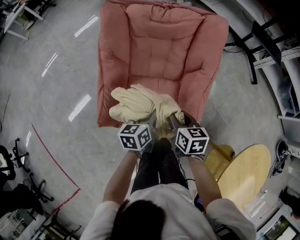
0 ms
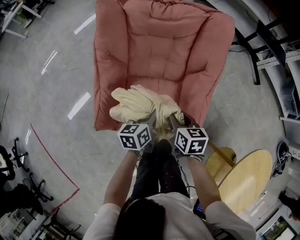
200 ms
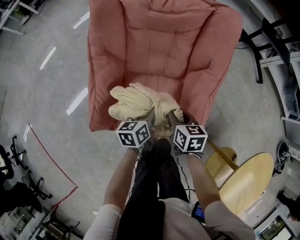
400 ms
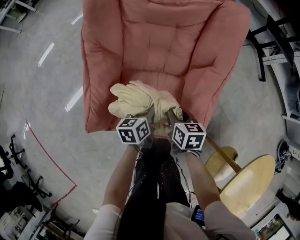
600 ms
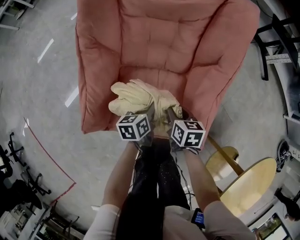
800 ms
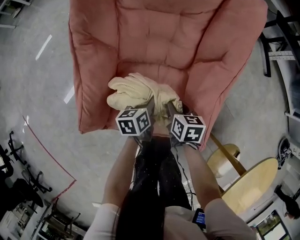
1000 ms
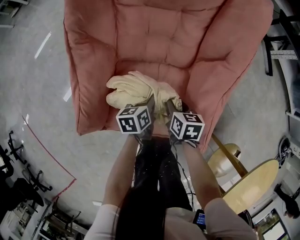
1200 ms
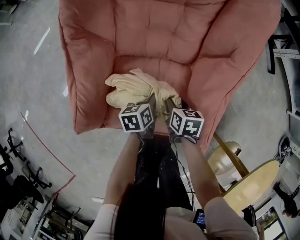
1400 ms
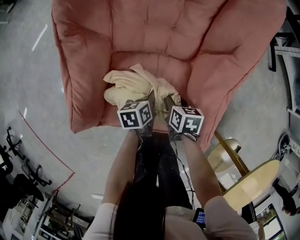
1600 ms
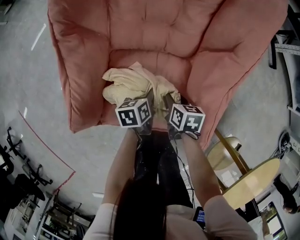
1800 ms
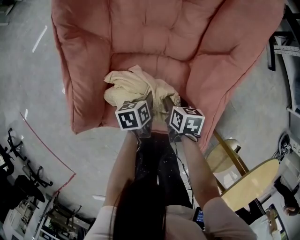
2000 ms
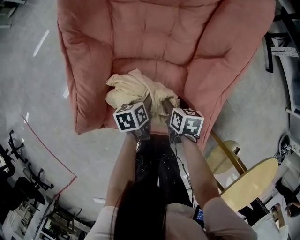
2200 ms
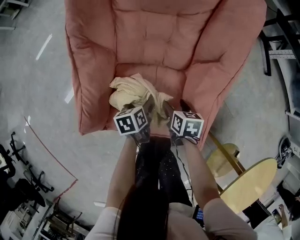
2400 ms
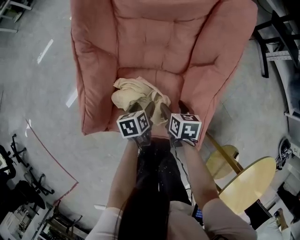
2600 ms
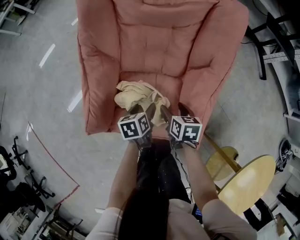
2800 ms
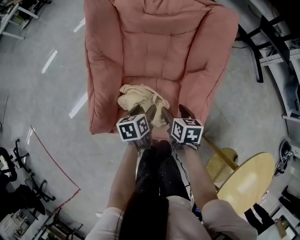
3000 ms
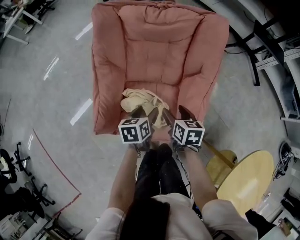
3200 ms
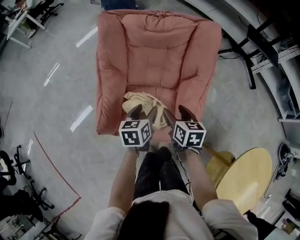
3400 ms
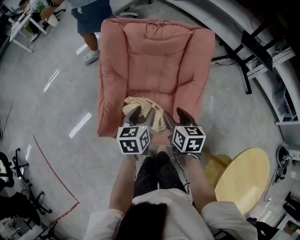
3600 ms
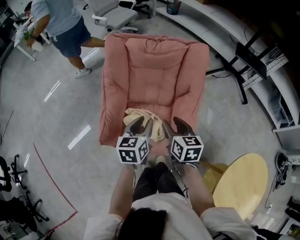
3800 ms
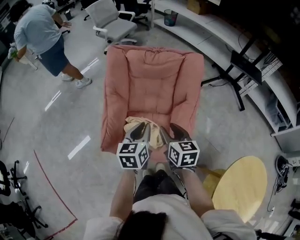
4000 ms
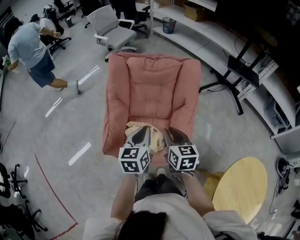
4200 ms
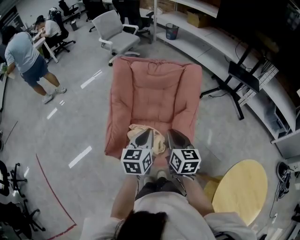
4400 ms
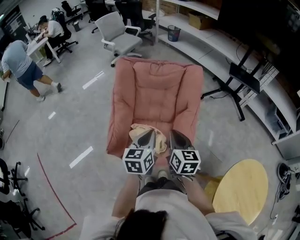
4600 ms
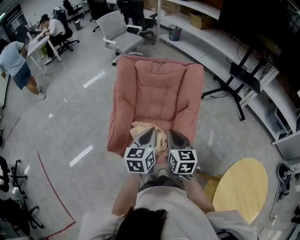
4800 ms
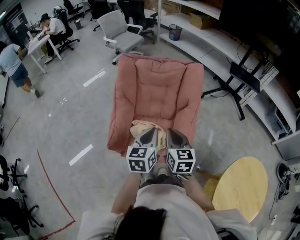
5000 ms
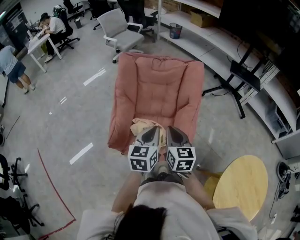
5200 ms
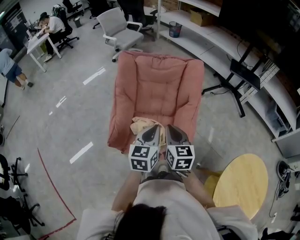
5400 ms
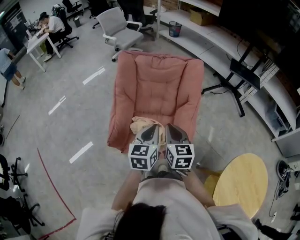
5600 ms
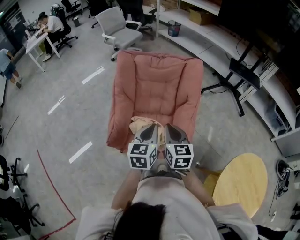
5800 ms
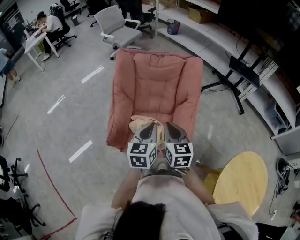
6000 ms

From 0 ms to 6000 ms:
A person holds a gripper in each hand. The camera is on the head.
From 0 ms to 1600 ms: The two grippers go roughly 30 cm downward. The left gripper rotates roughly 20 degrees.
From 1600 ms to 3000 ms: The grippers both shift upward by about 15 cm. The right gripper opens its fingers; the left gripper opens up.
From 3000 ms to 4400 ms: The two grippers go roughly 30 cm upward. The left gripper swivels roughly 40 degrees, and closes its fingers. The right gripper rotates about 30 degrees, and closes up.
From 4400 ms to 6000 ms: The grippers move only a little.

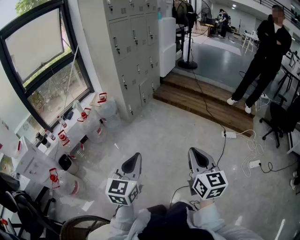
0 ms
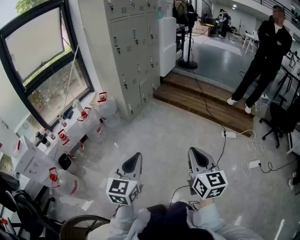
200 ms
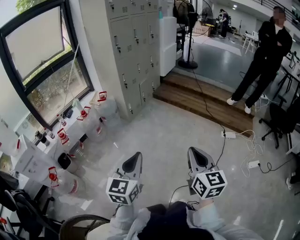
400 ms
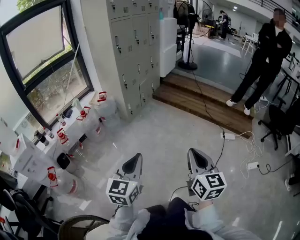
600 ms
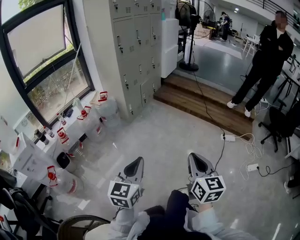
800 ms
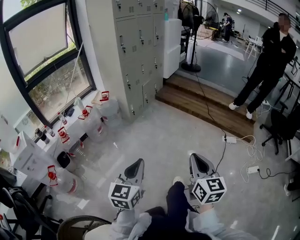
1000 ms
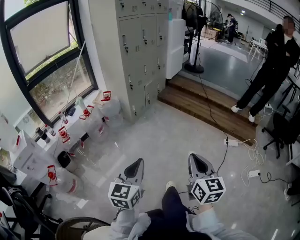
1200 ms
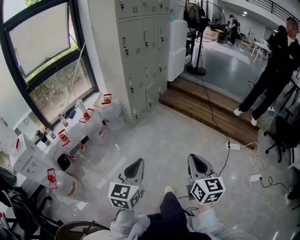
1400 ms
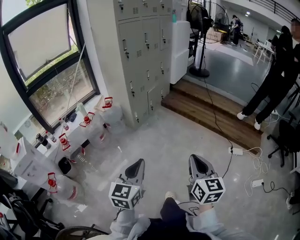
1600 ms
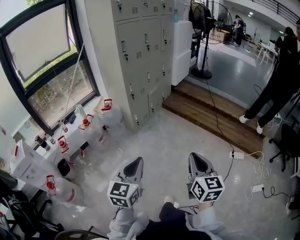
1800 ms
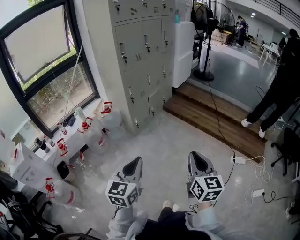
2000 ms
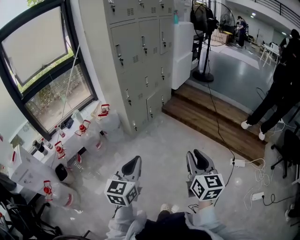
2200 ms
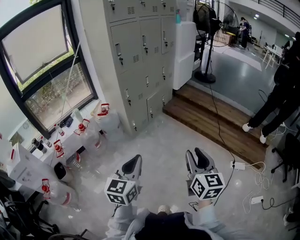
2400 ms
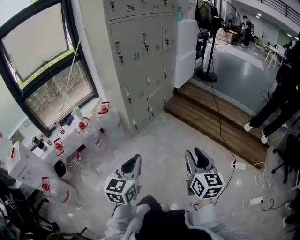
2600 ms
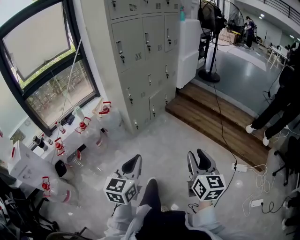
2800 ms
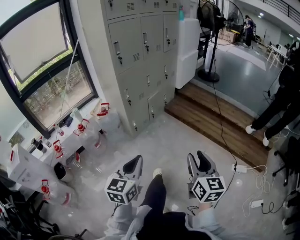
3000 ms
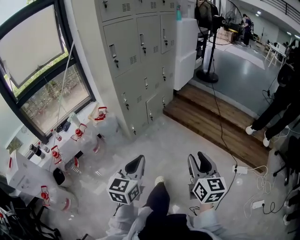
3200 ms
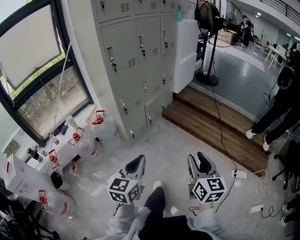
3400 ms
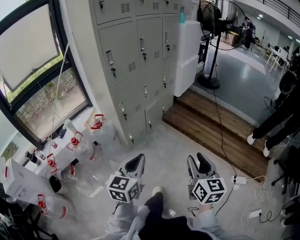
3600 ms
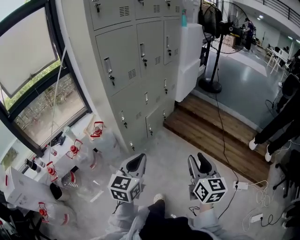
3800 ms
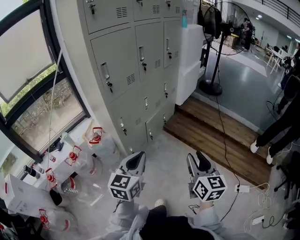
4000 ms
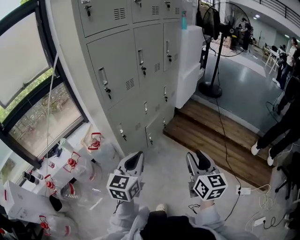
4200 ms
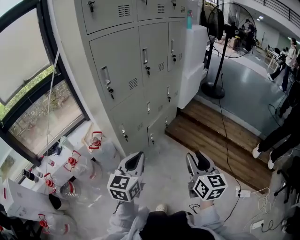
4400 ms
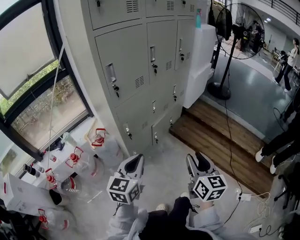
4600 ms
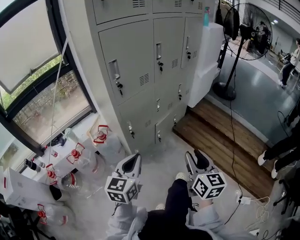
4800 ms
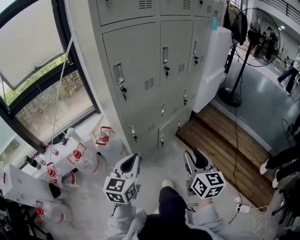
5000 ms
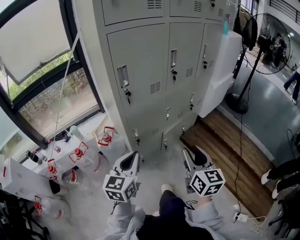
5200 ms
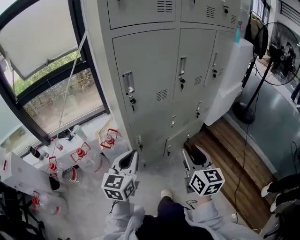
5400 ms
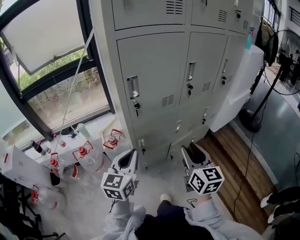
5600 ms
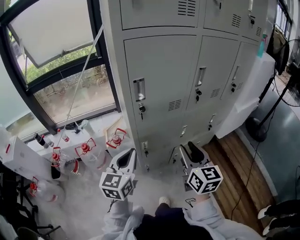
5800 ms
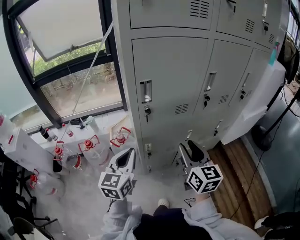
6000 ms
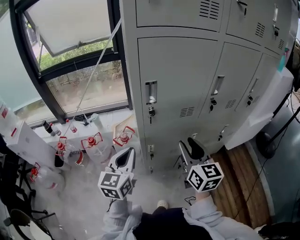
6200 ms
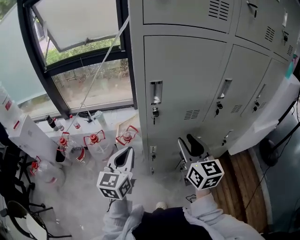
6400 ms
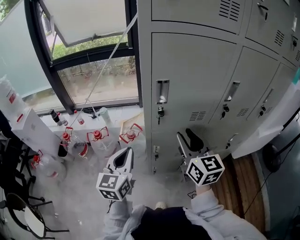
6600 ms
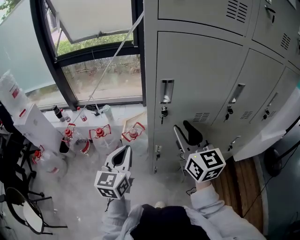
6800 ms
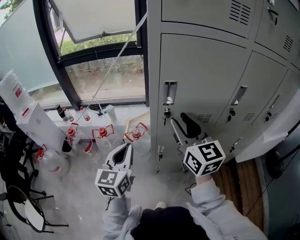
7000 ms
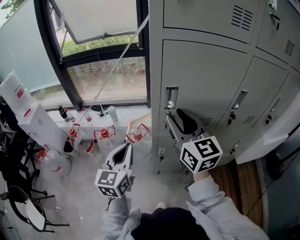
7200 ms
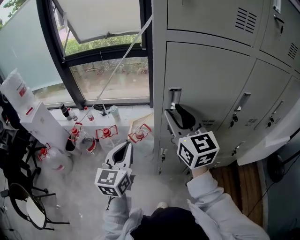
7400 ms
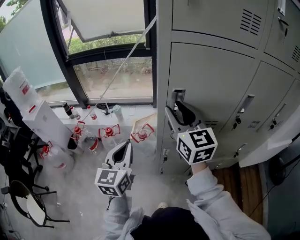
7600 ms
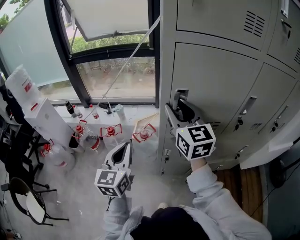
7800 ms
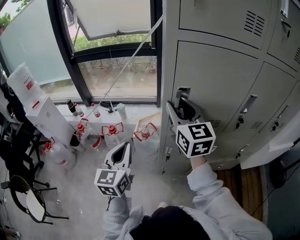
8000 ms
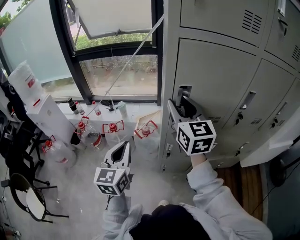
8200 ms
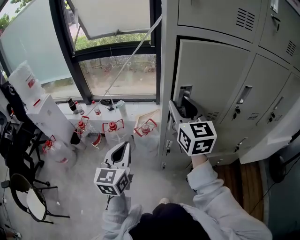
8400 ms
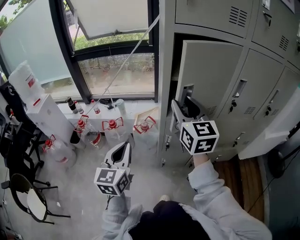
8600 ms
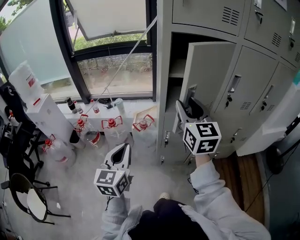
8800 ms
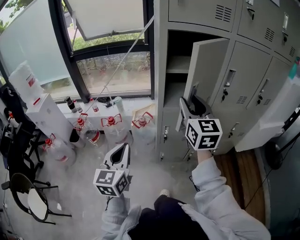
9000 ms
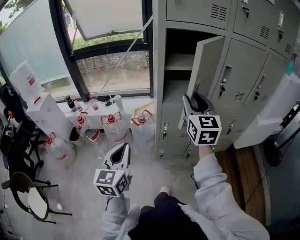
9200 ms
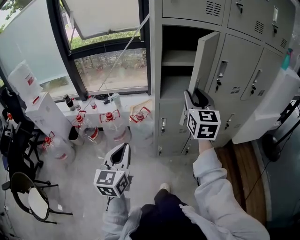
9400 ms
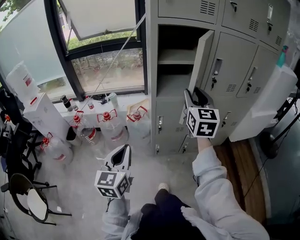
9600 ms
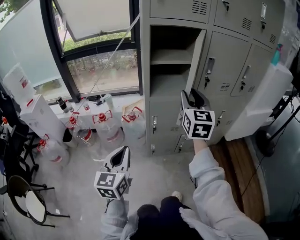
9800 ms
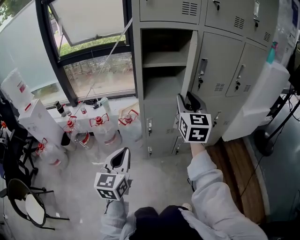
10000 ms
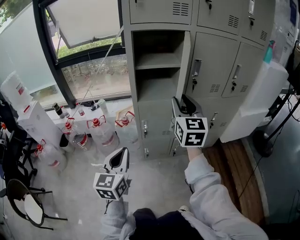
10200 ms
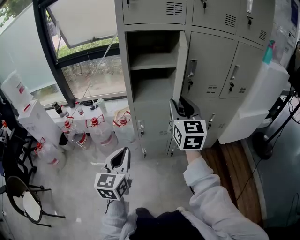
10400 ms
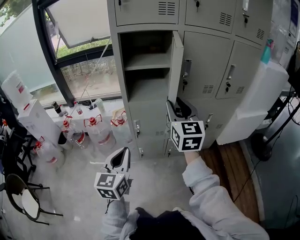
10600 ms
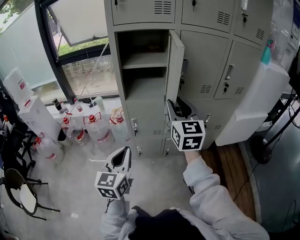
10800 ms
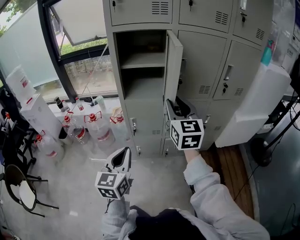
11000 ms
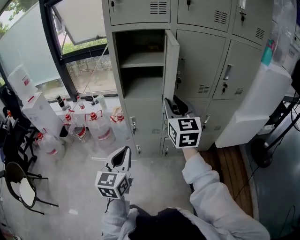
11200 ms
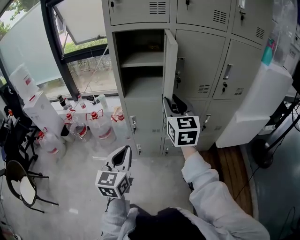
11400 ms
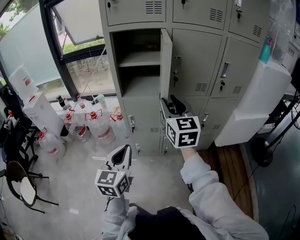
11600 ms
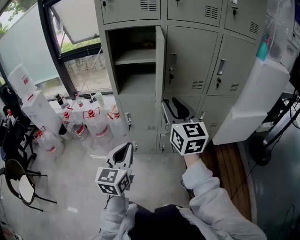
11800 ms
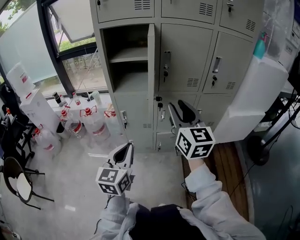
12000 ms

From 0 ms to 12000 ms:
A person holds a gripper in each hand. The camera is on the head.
From 0 ms to 1600 ms: Both grippers move forward, roughly 15 cm.
From 1600 ms to 3000 ms: Both grippers travel together forward, about 25 cm. The right gripper opens its fingers.
From 3000 ms to 4400 ms: Both grippers move forward, roughly 35 cm.
From 4400 ms to 6000 ms: The left gripper shifts by some 20 cm, and swivels roughly 40 degrees; the right gripper ends up roughly 35 cm from where it was, and rotates some 40 degrees.
From 6000 ms to 7600 ms: The right gripper travels forward, to the left and upward by about 25 cm, and swivels some 30 degrees. Meanwhile the left gripper heads to the left, covering approximately 5 cm, and swivels roughly 20 degrees.
From 7600 ms to 9000 ms: The grippers both shift backward by about 15 cm.
From 9000 ms to 10400 ms: The grippers both shift to the right and backward by approximately 15 cm.
From 10400 ms to 12000 ms: The left gripper heads to the right, covering roughly 20 cm, while the right gripper travels to the right and backward by approximately 15 cm.

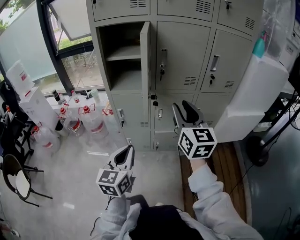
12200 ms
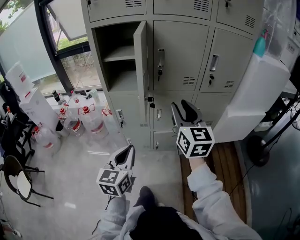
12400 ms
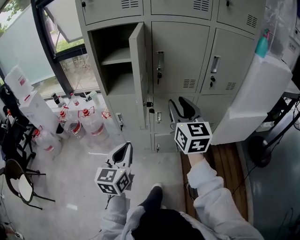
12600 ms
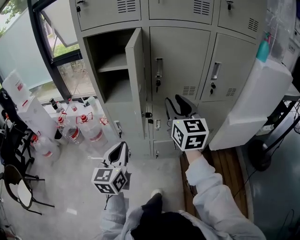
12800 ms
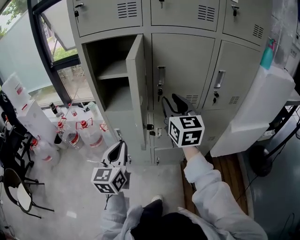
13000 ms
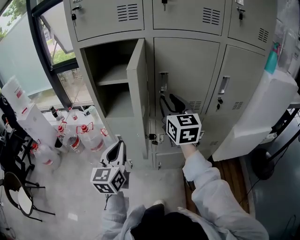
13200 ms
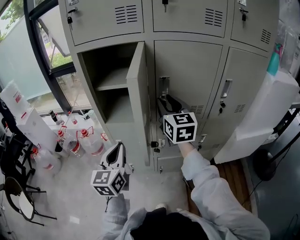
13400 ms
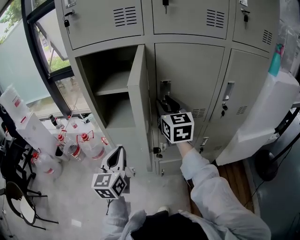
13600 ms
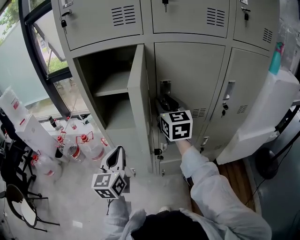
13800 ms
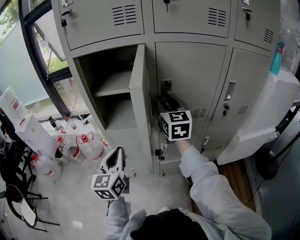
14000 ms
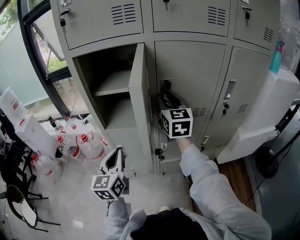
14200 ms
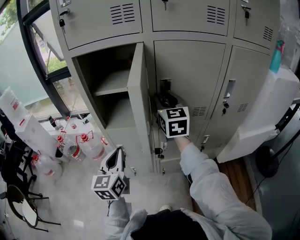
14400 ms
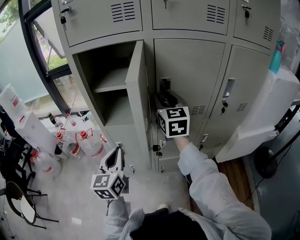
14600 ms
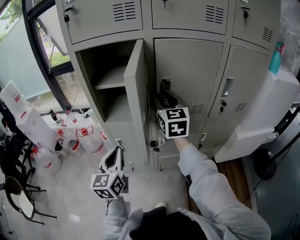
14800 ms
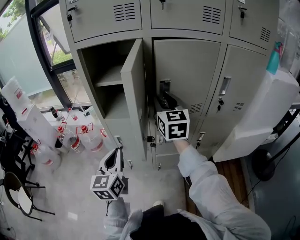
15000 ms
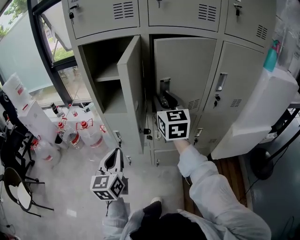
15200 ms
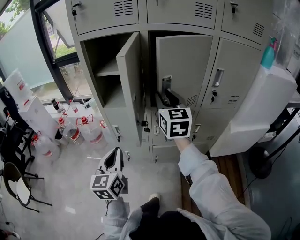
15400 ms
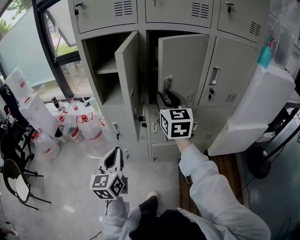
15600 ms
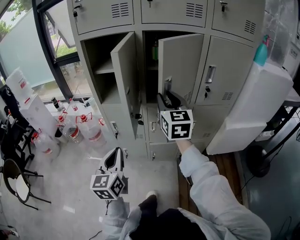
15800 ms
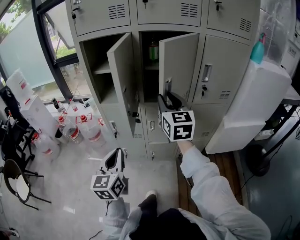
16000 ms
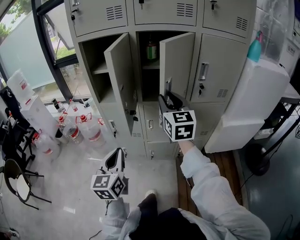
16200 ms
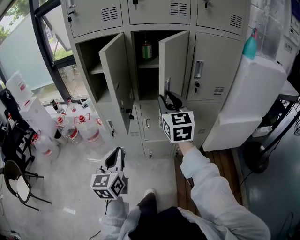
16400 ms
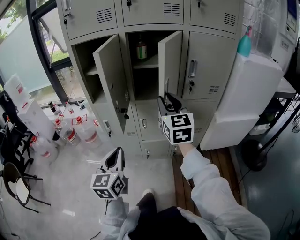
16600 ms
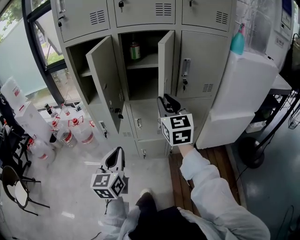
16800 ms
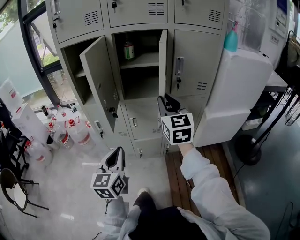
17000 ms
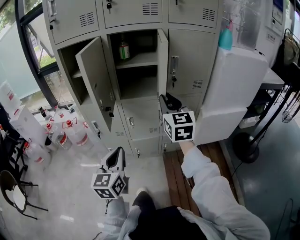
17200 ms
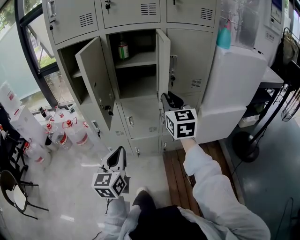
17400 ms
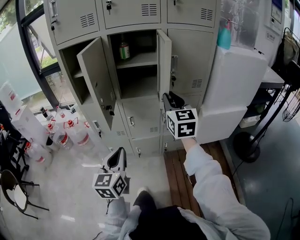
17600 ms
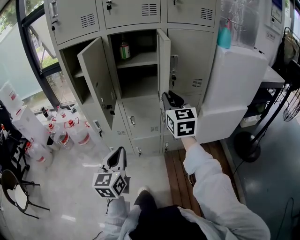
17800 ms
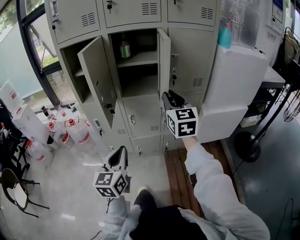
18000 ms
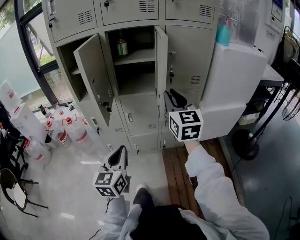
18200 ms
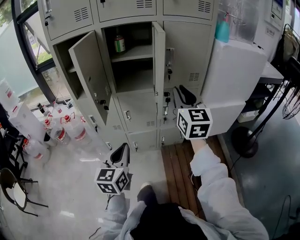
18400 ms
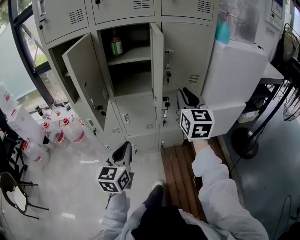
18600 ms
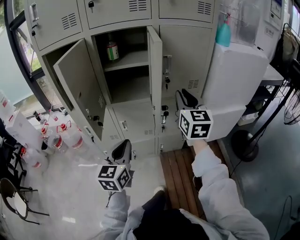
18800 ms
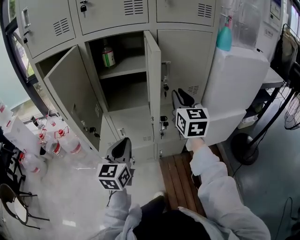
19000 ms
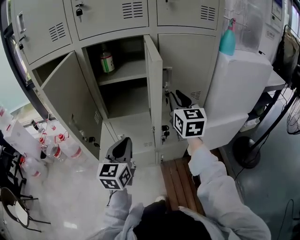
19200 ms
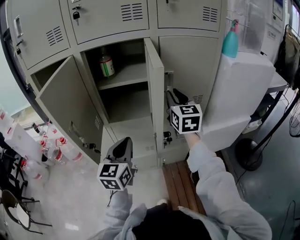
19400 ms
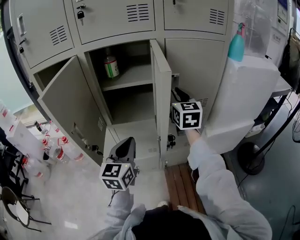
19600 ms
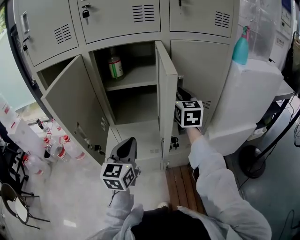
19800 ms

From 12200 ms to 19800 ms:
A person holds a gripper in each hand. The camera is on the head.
From 12200 ms to 13800 ms: Both grippers move forward, approximately 25 cm.
From 13800 ms to 15200 ms: The grippers both shift backward by roughly 10 cm.
From 15200 ms to 16800 ms: The left gripper shifts roughly 15 cm to the right and backward. Meanwhile the right gripper is displaced backward and to the right by roughly 20 cm.
From 16800 ms to 18200 ms: The two grippers go roughly 5 cm to the right.
From 18200 ms to 19800 ms: Both grippers move forward, about 25 cm.
